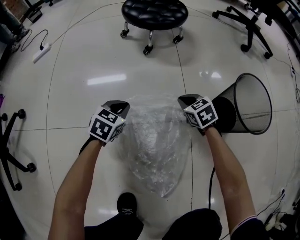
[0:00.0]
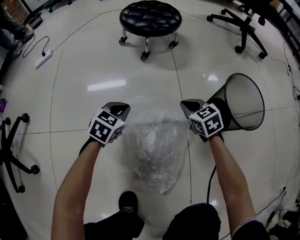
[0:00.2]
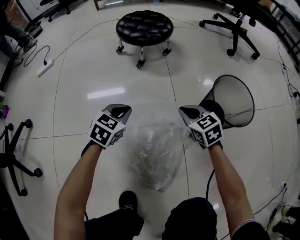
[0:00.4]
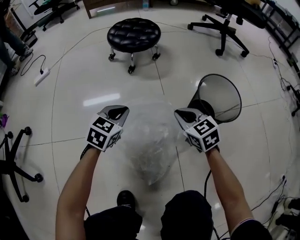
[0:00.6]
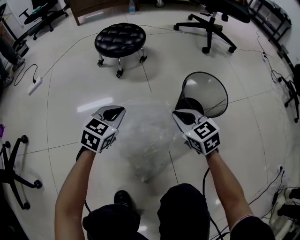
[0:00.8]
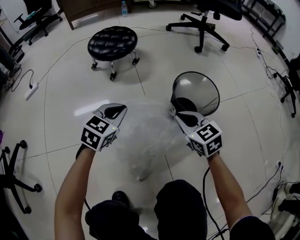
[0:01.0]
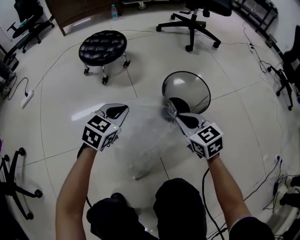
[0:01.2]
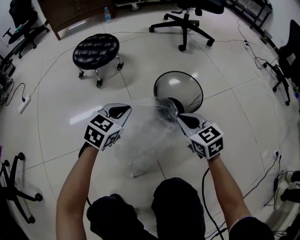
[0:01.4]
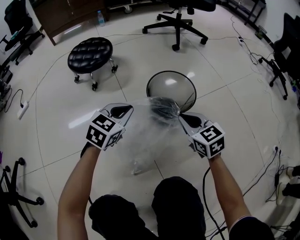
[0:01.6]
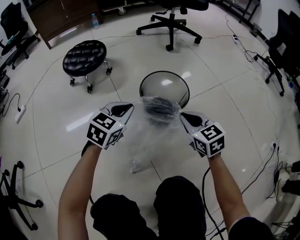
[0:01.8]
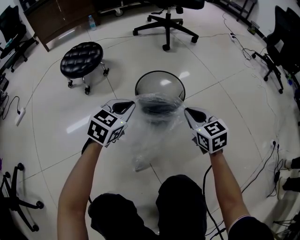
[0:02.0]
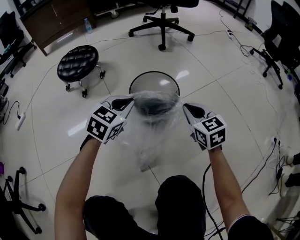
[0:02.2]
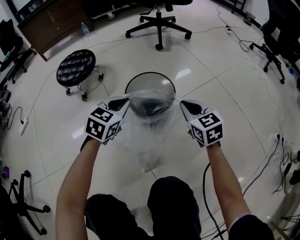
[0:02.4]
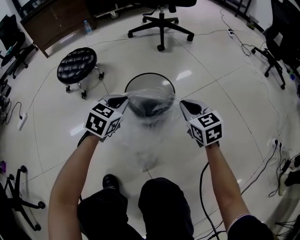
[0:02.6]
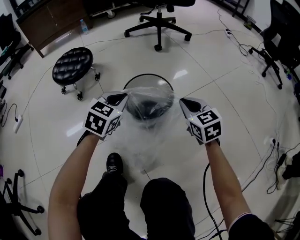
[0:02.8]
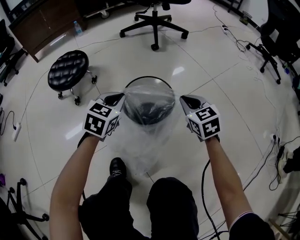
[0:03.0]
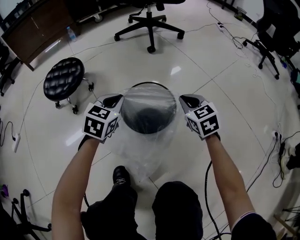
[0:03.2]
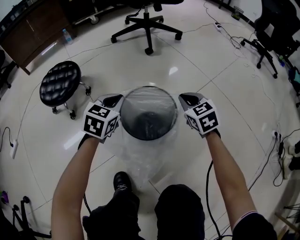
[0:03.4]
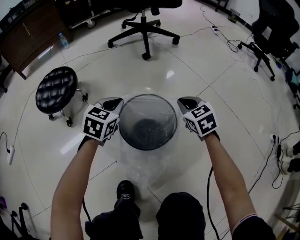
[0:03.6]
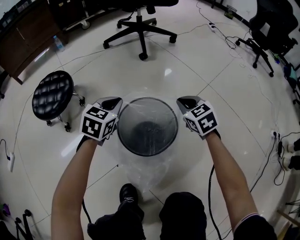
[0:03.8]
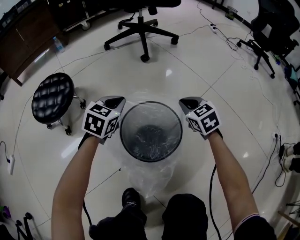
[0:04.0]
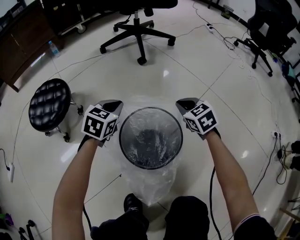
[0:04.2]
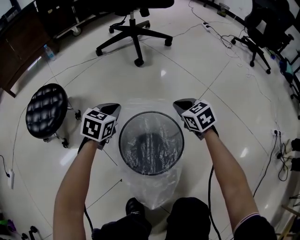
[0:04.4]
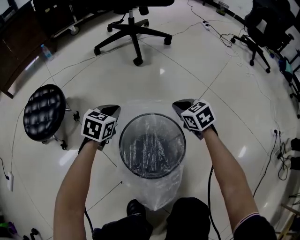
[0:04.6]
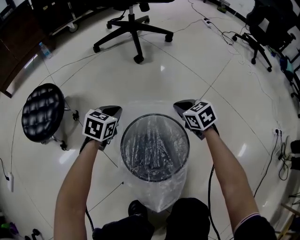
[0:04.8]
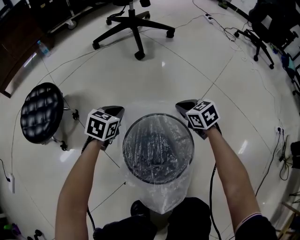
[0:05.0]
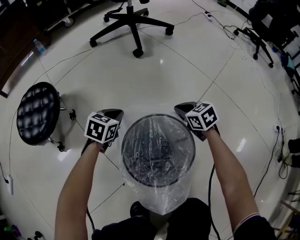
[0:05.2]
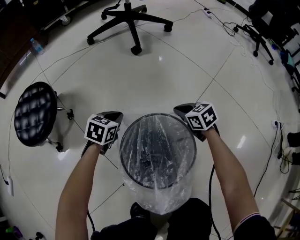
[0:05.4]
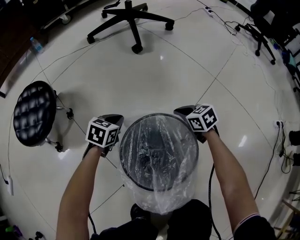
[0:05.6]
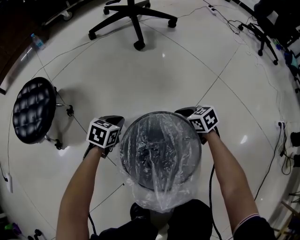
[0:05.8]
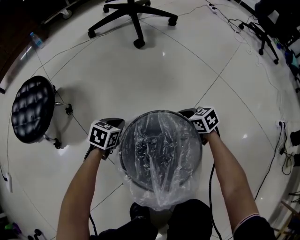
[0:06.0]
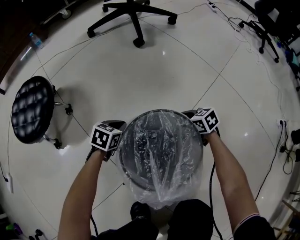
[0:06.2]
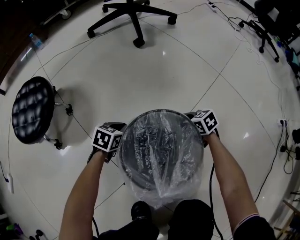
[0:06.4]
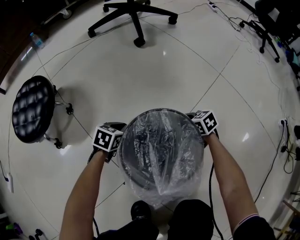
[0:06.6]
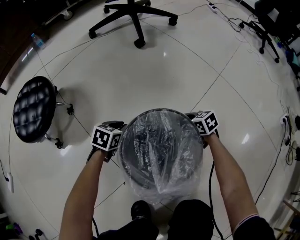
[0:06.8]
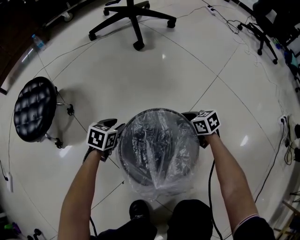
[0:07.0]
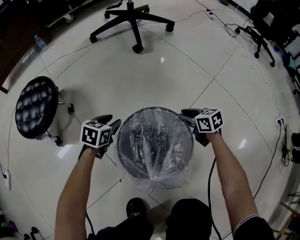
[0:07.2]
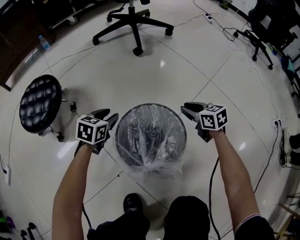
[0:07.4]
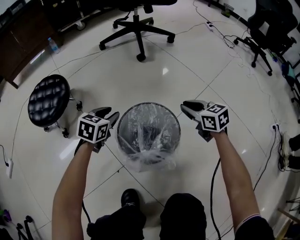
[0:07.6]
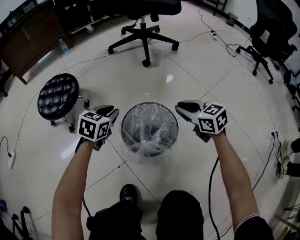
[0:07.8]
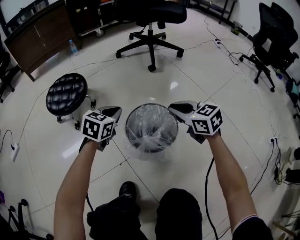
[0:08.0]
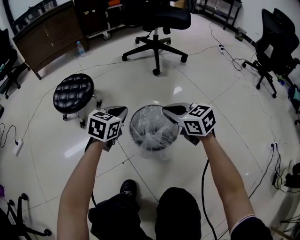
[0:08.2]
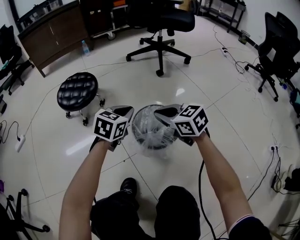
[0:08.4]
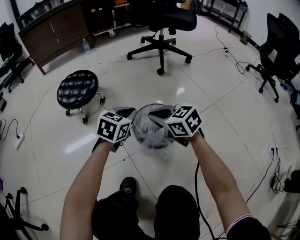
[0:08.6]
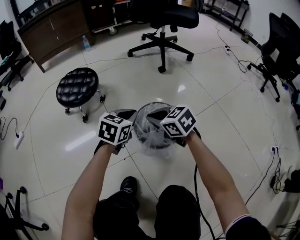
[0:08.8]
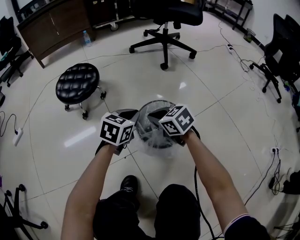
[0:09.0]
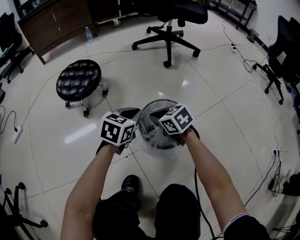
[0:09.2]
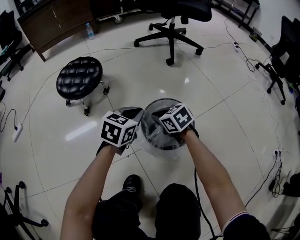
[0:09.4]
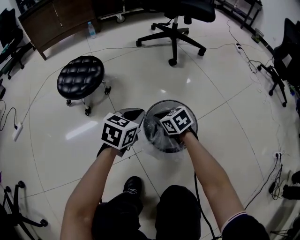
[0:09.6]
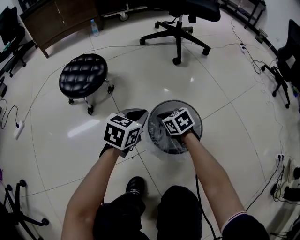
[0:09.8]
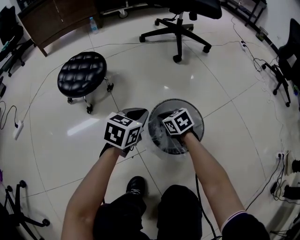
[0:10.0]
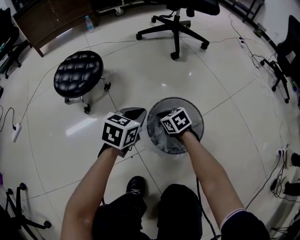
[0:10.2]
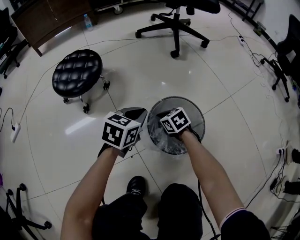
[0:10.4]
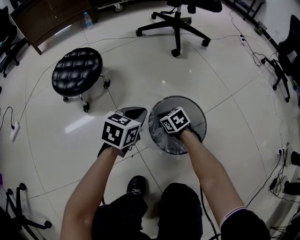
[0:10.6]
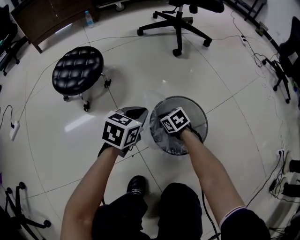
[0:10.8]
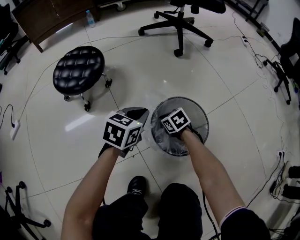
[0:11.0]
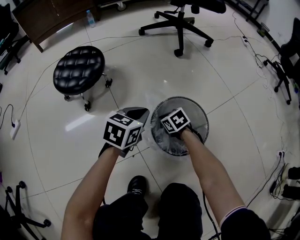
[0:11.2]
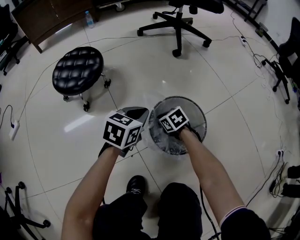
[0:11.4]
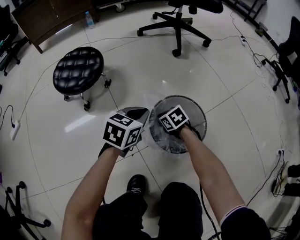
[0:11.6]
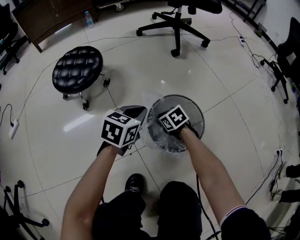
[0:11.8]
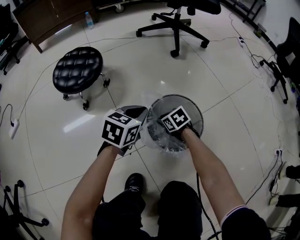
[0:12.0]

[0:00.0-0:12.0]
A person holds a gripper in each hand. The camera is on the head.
0:00.0 to 0:01.6: The right gripper moves upward, to the right and backward, some 35 cm, and changes its angle by some 30 degrees; the left gripper travels to the right and upward by about 35 cm, and swivels roughly 30 degrees.
0:01.6 to 0:03.0: The two grippers go about 15 cm forward and to the right.
0:03.0 to 0:04.4: The two grippers go some 20 cm forward and downward.
0:04.4 to 0:06.0: Both grippers travel together downward, some 20 cm. The right gripper rotates about 20 degrees.
0:06.0 to 0:07.6: Both grippers travel together upward, roughly 15 cm. The left gripper opens its fingers.
0:07.6 to 0:09.0: The left gripper is displaced backward and upward by about 15 cm, and closes up, while the right gripper shifts approximately 25 cm to the left, and turns by approximately 30 degrees.
0:09.0 to 0:10.4: The right gripper travels downward by about 15 cm. The left gripper changes place by approximately 5 cm.
0:10.4 to 0:12.0: There are only small adjustments of the grippers.

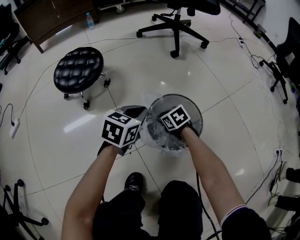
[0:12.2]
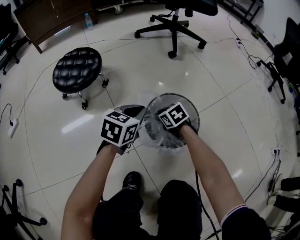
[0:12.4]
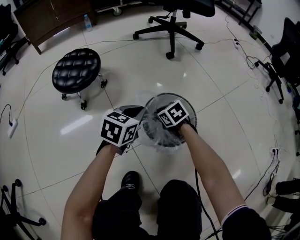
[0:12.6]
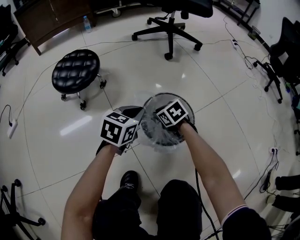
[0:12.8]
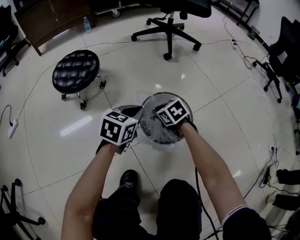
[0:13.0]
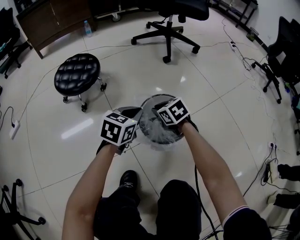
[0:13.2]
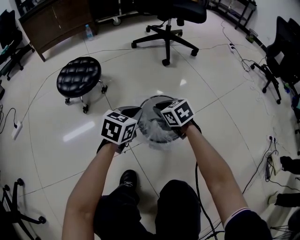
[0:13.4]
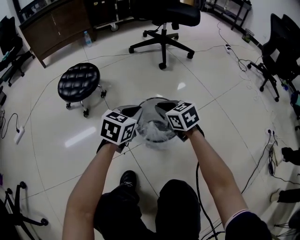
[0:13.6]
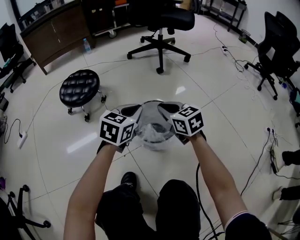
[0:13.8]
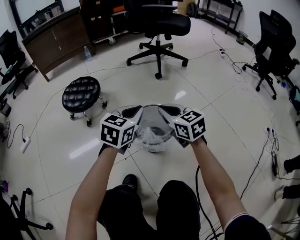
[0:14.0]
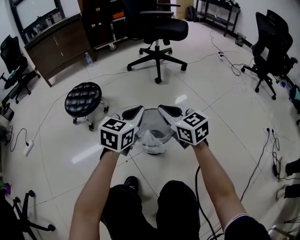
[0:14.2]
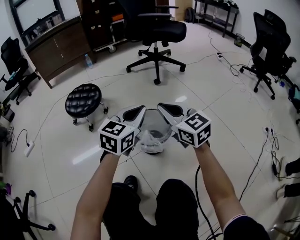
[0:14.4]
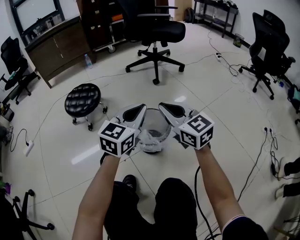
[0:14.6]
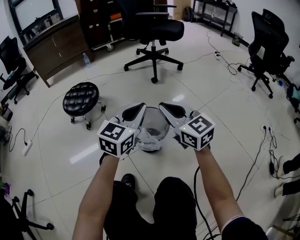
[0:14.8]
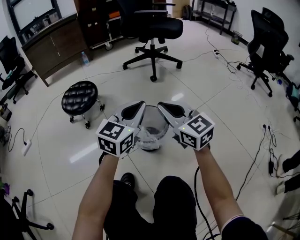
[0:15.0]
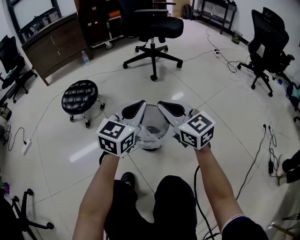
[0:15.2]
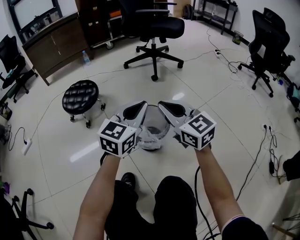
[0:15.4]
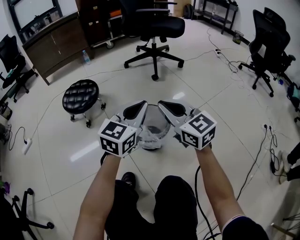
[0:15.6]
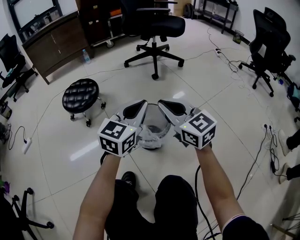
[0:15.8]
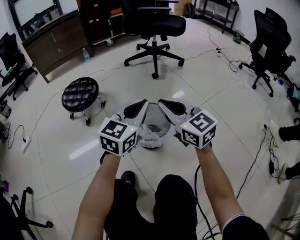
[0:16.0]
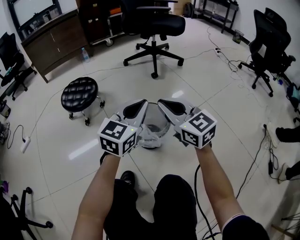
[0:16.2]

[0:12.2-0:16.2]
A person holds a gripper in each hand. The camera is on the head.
0:12.2 to 0:13.6: The right gripper is displaced upward by approximately 20 cm, and swivels about 20 degrees, while the left gripper heads upward, covering roughly 5 cm.
0:13.6 to 0:14.8: The left gripper shifts some 20 cm upward, backward and to the right, and rotates about 30 degrees. The right gripper shifts about 20 cm upward and backward, and rotates some 30 degrees.
0:14.8 to 0:16.2: The two grippers keep their place.

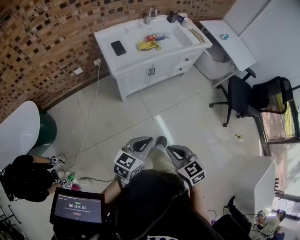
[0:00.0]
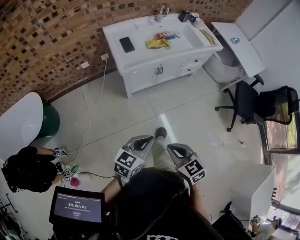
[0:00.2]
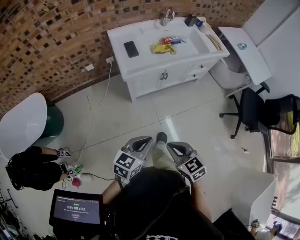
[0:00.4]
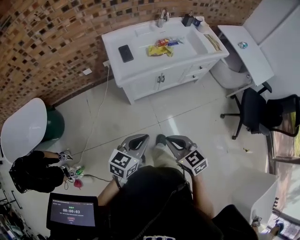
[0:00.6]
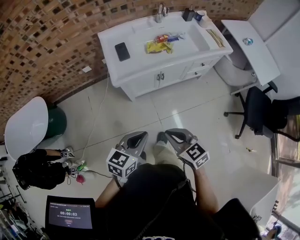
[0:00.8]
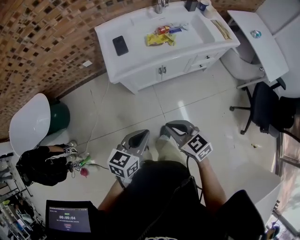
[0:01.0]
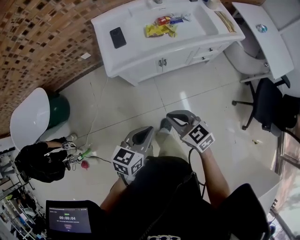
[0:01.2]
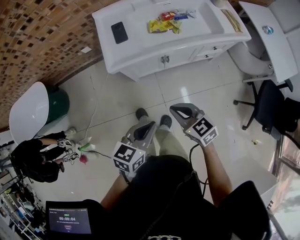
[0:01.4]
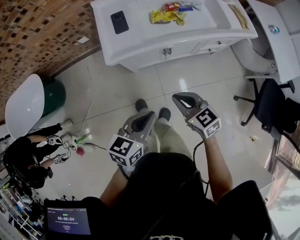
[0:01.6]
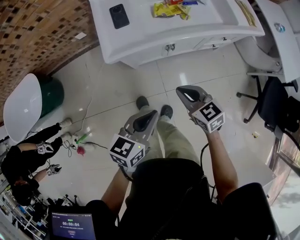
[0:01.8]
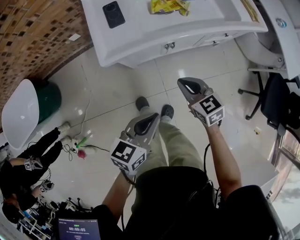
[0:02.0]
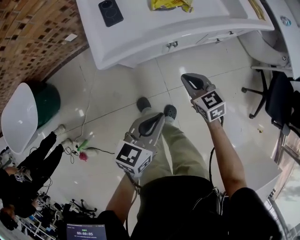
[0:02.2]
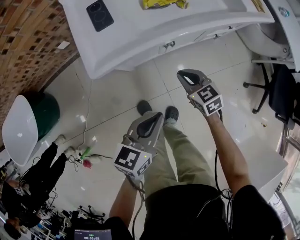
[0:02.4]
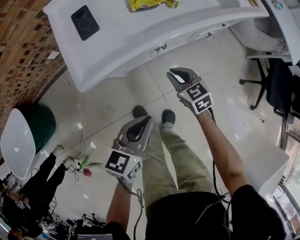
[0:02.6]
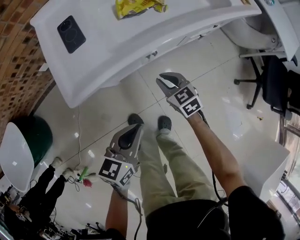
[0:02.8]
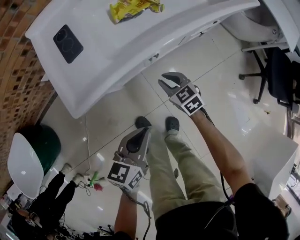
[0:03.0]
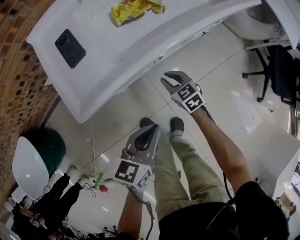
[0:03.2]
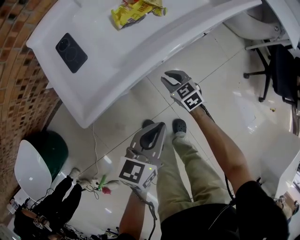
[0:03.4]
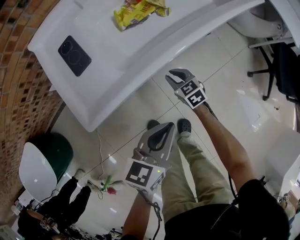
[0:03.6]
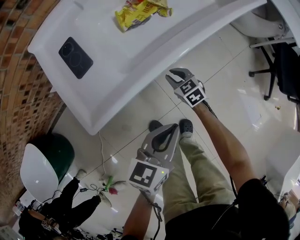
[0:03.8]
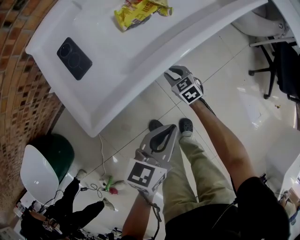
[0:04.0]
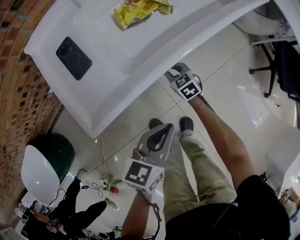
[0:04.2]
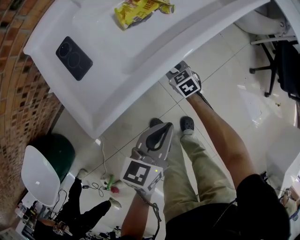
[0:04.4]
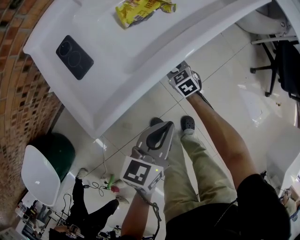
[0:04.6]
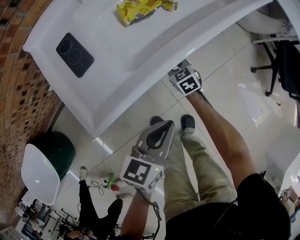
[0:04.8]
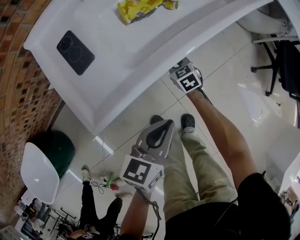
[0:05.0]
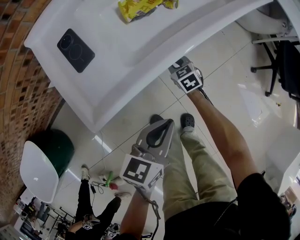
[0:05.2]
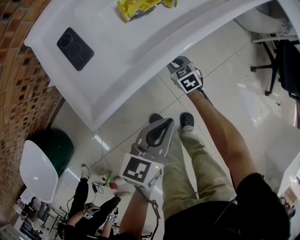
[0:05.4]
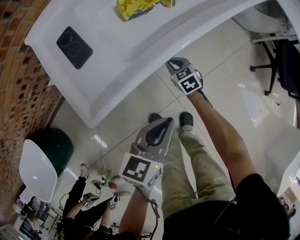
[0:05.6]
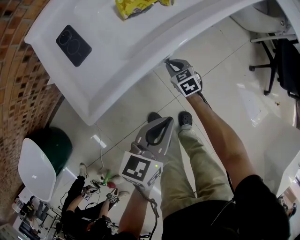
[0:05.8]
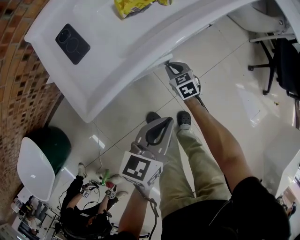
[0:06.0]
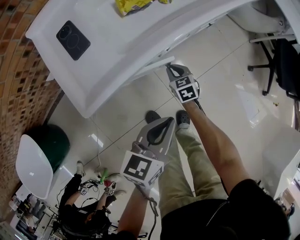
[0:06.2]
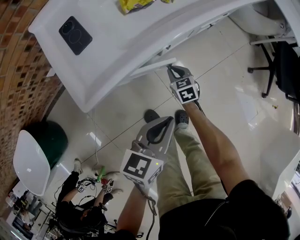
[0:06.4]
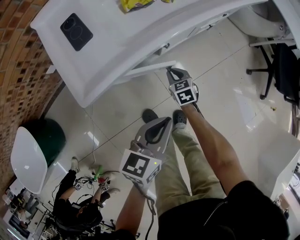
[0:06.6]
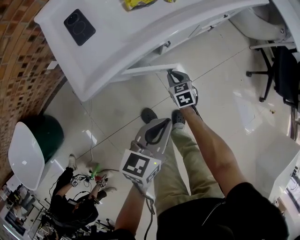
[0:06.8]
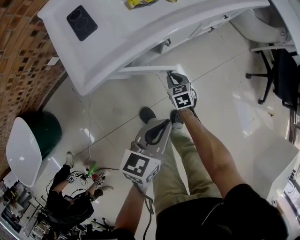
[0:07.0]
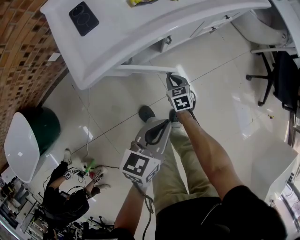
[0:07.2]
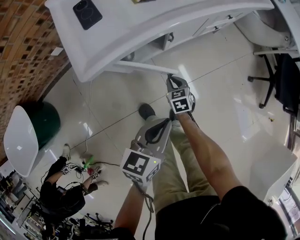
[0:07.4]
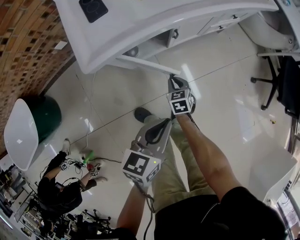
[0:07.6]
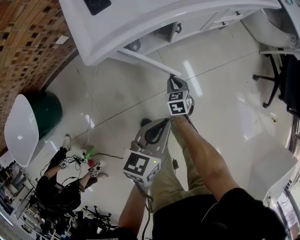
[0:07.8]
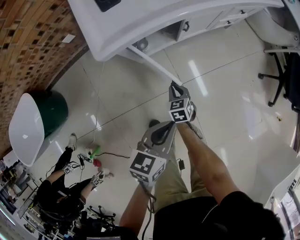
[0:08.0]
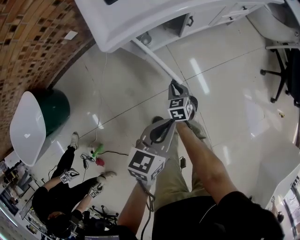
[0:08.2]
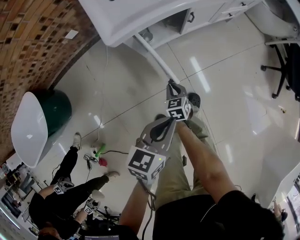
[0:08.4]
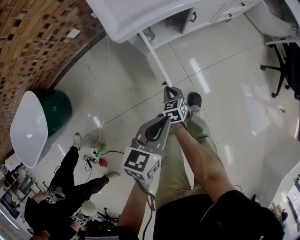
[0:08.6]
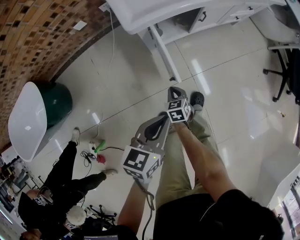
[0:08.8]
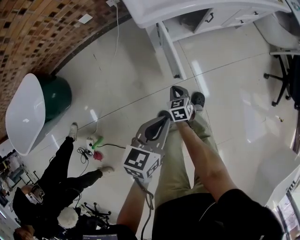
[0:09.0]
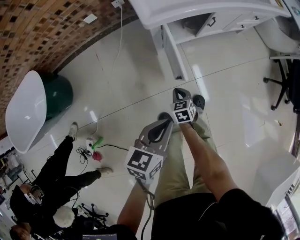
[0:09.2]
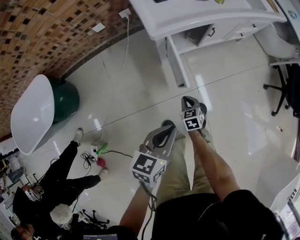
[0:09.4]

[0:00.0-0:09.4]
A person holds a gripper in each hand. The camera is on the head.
0:00.0 to 0:01.6: The left gripper shifts approximately 25 cm forward and to the right, and rotates approximately 20 degrees; the right gripper travels forward by some 35 cm.
0:01.6 to 0:03.2: The right gripper travels downward and forward by some 40 cm, and swivels approximately 20 degrees; the left gripper heads downward and forward, covering approximately 25 cm.
0:03.2 to 0:04.8: The right gripper is displaced forward and downward by about 10 cm; the left gripper moves approximately 5 cm.
0:04.8 to 0:06.2: The right gripper travels backward by about 5 cm, while the left gripper ends up some 5 cm from where it was.
0:06.2 to 0:07.8: The grippers both shift backward by roughly 15 cm.
0:07.8 to 0:09.4: The two grippers go approximately 20 cm backward and to the left.
